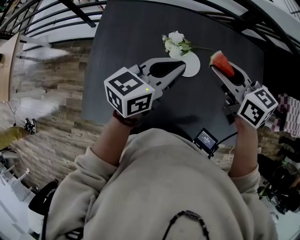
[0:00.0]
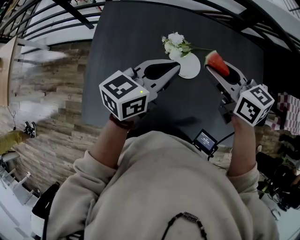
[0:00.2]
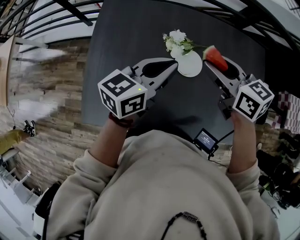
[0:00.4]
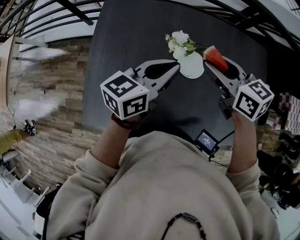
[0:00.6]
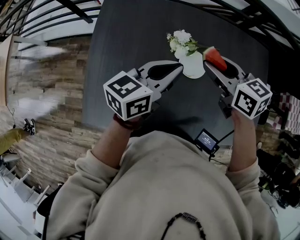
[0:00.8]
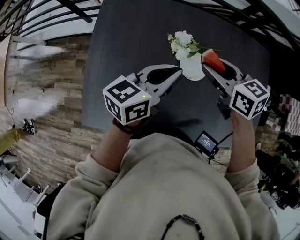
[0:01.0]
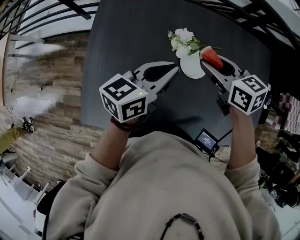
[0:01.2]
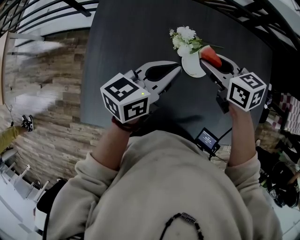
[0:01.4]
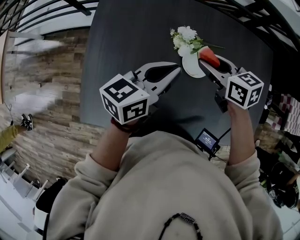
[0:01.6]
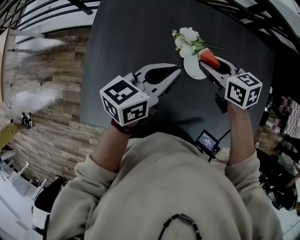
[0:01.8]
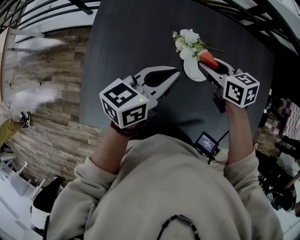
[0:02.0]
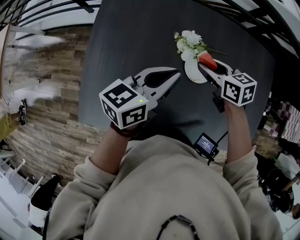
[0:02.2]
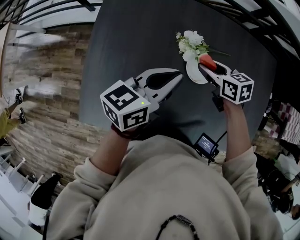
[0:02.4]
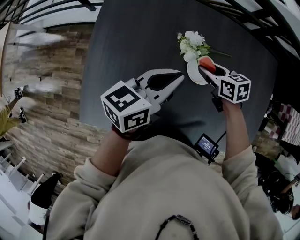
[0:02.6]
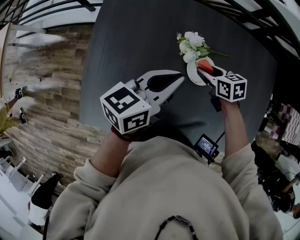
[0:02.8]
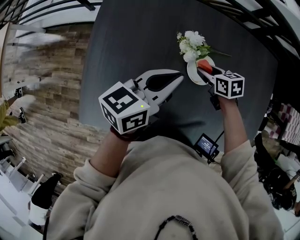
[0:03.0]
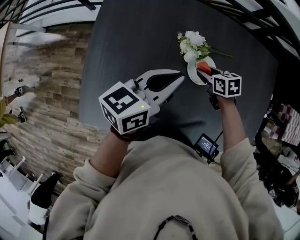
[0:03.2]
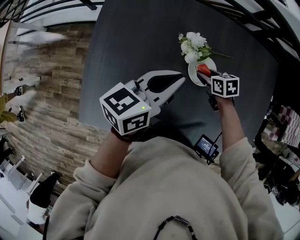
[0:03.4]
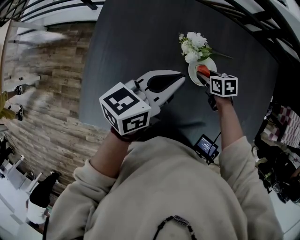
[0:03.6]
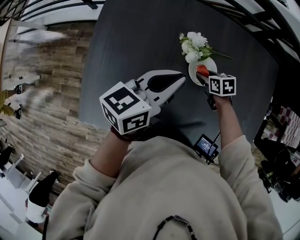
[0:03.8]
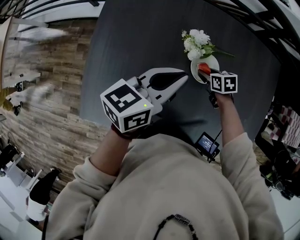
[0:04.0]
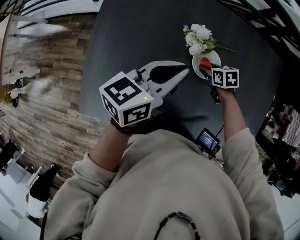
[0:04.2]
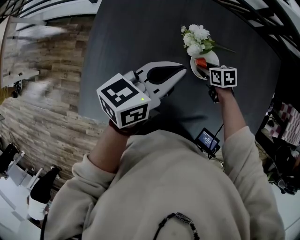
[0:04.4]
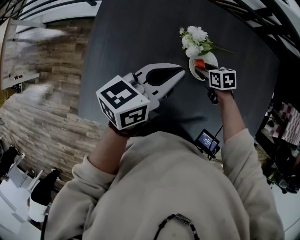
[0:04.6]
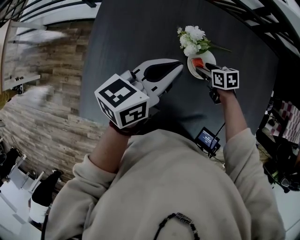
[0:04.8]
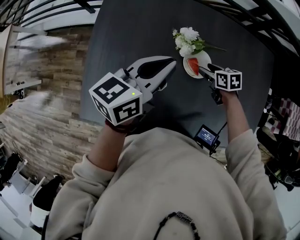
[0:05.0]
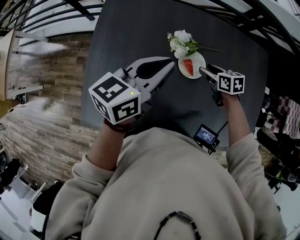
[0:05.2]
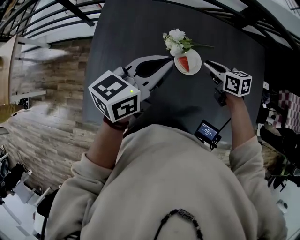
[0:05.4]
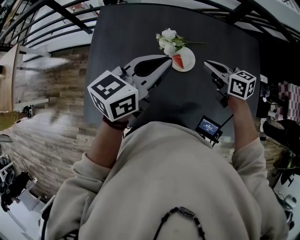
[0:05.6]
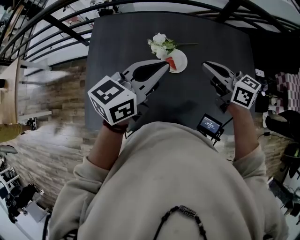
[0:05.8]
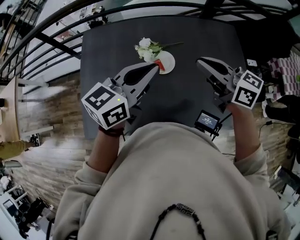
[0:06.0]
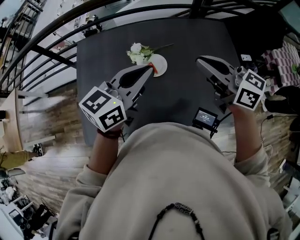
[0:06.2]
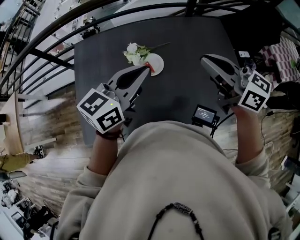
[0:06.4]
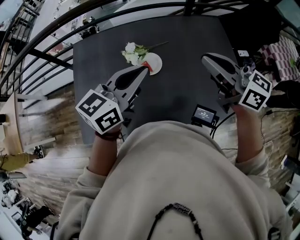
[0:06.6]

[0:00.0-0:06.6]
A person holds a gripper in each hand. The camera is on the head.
0:00.0 to 0:01.6: The right gripper shifts roughly 15 cm downward and to the left; the left gripper moves downward and to the left, about 10 cm.
0:01.6 to 0:03.2: The right gripper moves downward, about 15 cm.
0:03.2 to 0:05.0: The grippers stay close to where they were, moving slightly.
0:05.0 to 0:06.6: The right gripper is displaced upward and backward by some 50 cm, tips its fingers upward by approximately 50 degrees, and closes its fingers. Meanwhile the left gripper goes about 25 cm upward, to the right and backward, and changes its angle by about 20 degrees.

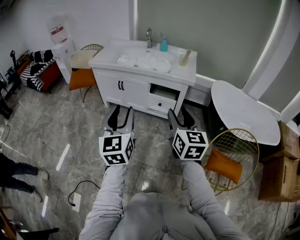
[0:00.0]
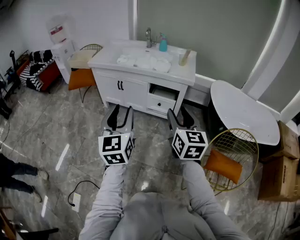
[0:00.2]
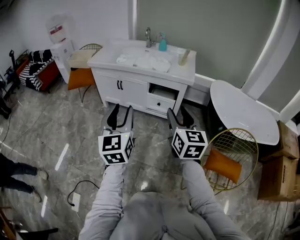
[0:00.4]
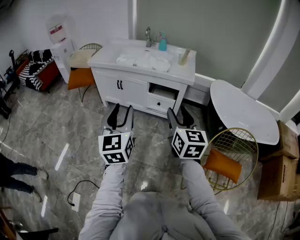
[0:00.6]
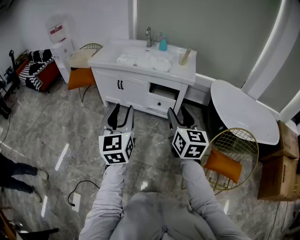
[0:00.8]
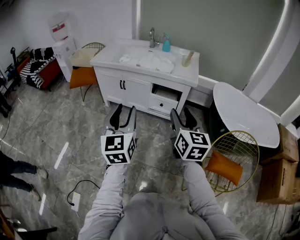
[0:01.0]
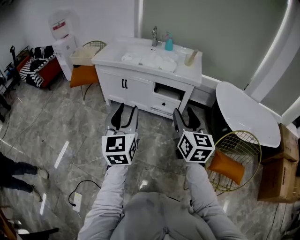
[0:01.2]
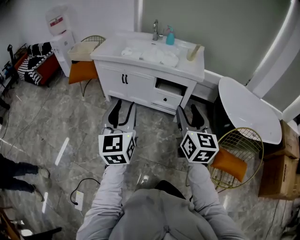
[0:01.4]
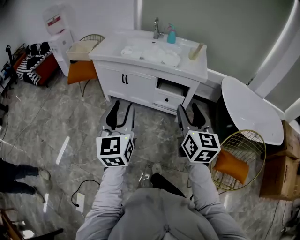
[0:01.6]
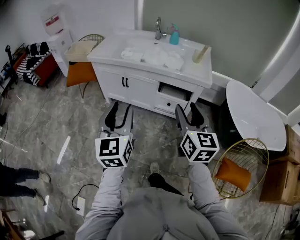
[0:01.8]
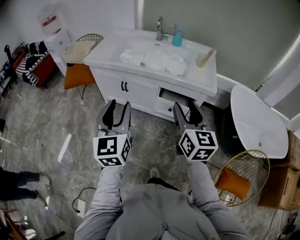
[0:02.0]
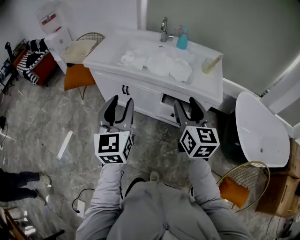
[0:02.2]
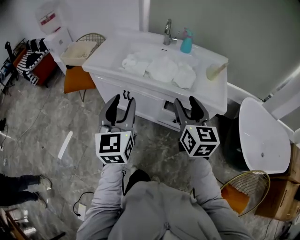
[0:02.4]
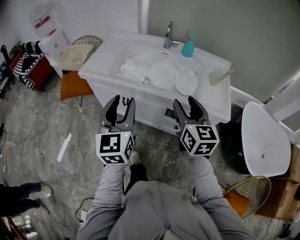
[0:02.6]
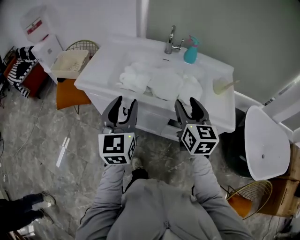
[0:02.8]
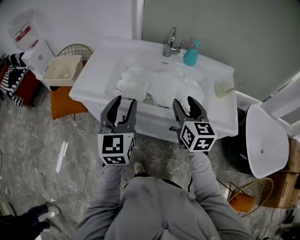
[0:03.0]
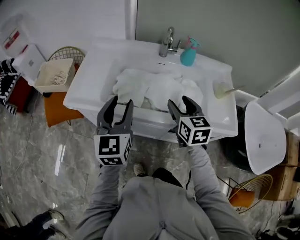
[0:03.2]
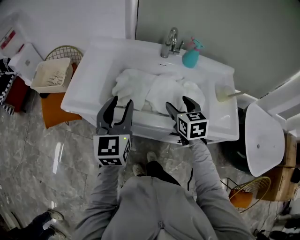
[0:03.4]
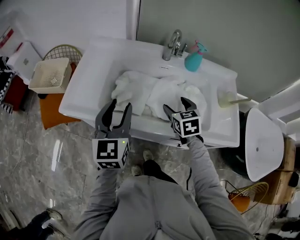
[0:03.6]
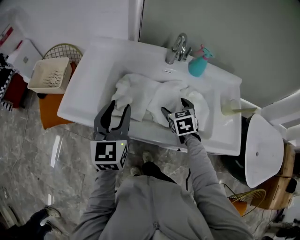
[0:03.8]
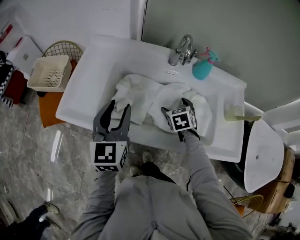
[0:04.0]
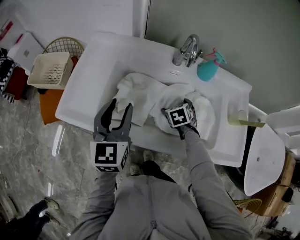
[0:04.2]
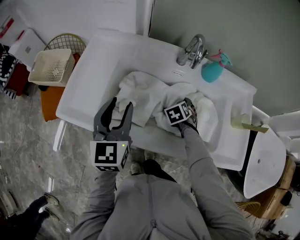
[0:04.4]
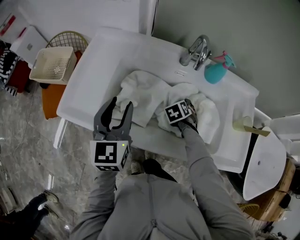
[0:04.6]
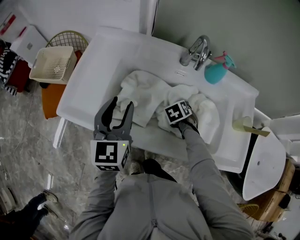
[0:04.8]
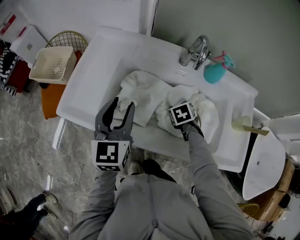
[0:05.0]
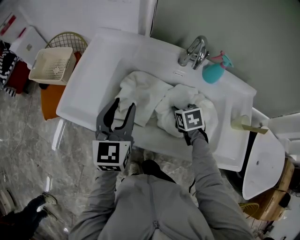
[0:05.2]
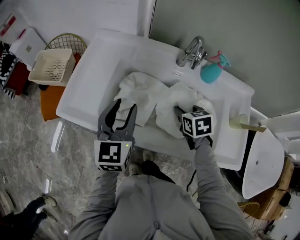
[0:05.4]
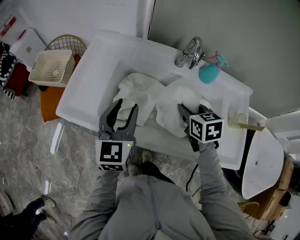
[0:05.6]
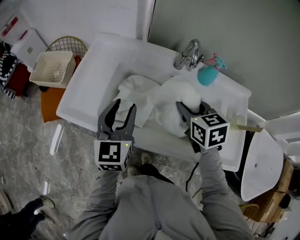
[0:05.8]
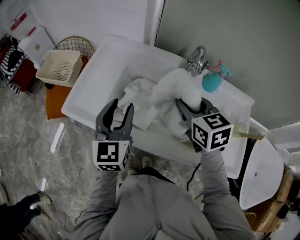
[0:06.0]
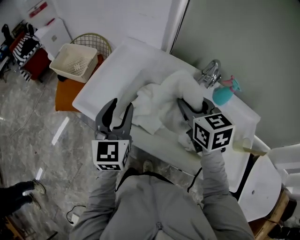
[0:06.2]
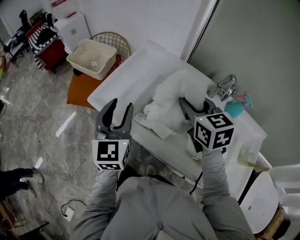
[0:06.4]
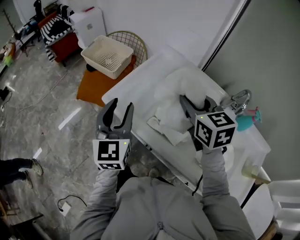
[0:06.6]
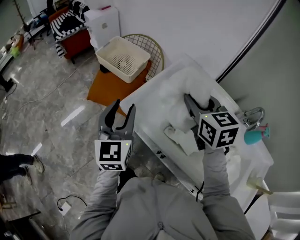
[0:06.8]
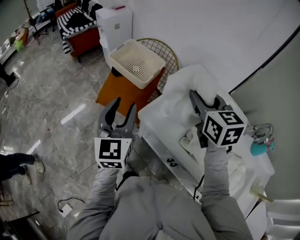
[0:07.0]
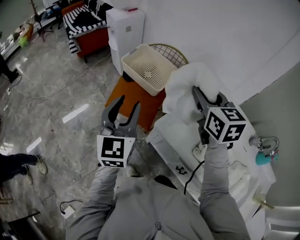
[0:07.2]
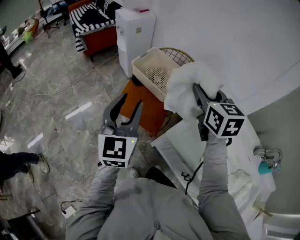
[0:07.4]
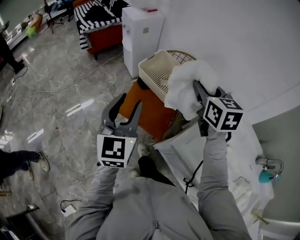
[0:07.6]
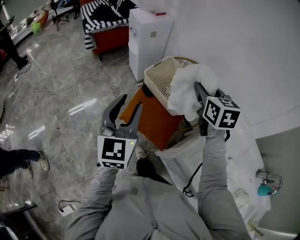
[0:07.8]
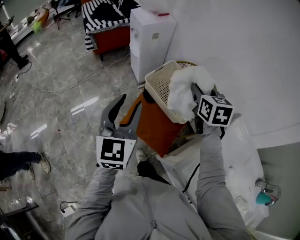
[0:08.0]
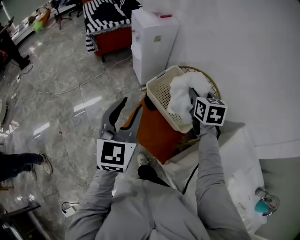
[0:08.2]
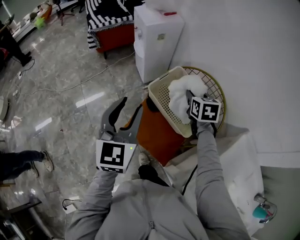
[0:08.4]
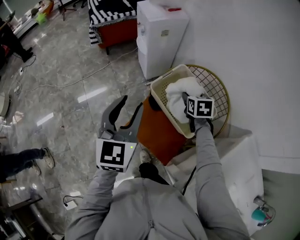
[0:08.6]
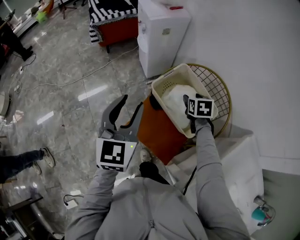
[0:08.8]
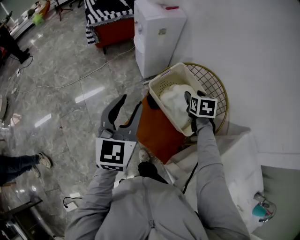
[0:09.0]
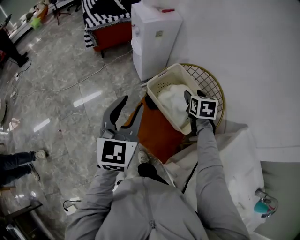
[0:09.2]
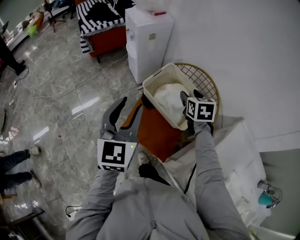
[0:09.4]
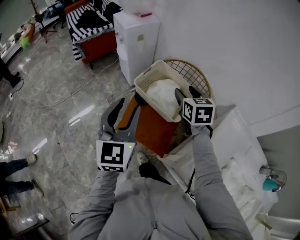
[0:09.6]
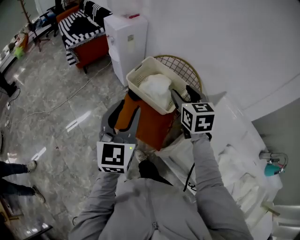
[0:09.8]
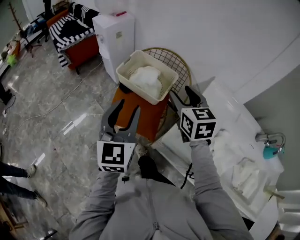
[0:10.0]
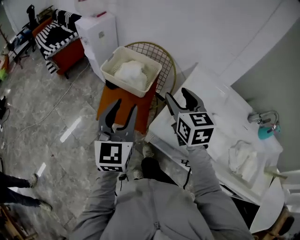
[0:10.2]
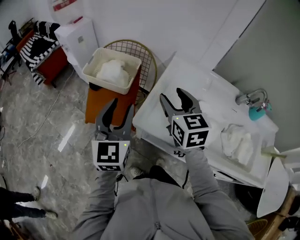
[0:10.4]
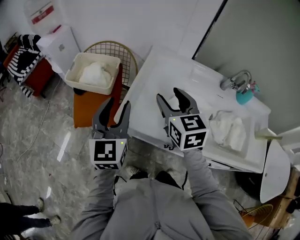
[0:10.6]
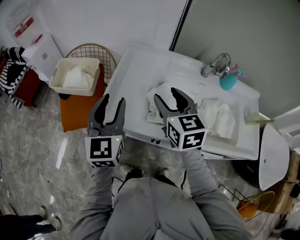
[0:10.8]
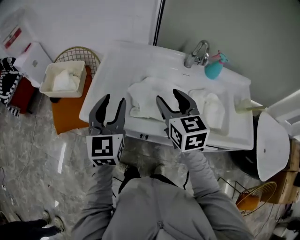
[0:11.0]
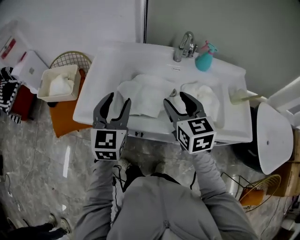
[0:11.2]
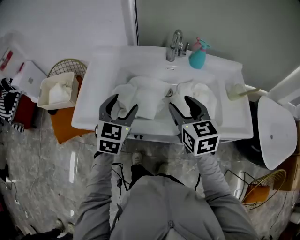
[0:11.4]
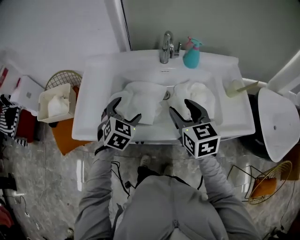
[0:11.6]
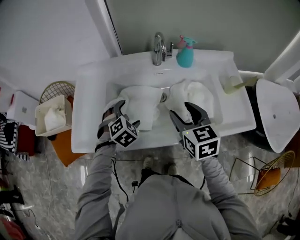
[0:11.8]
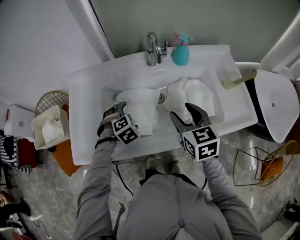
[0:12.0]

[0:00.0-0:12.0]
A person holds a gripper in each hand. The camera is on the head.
0:00.0 to 0:01.6: The right gripper goes about 5 cm forward; the left gripper shifts approximately 10 cm forward and to the left.
0:01.6 to 0:03.0: The two grippers travel together, forward, about 50 cm.
0:03.0 to 0:04.4: The left gripper is displaced forward by approximately 20 cm; the right gripper is displaced downward and forward by approximately 35 cm, points its fingers approximately 50 degrees further downward, and opens up.
0:04.4 to 0:06.0: The right gripper travels upward by some 30 cm, points its fingers roughly 40 degrees further upward, and closes up.
0:06.0 to 0:07.6: The two grippers travel together, approximately 60 cm. The left gripper swivels approximately 30 degrees. The right gripper swivels roughly 20 degrees.
0:07.6 to 0:09.0: The right gripper moves forward and downward, roughly 35 cm, and rotates roughly 30 degrees. Meanwhile the left gripper travels forward by about 20 cm.
0:09.0 to 0:10.4: The right gripper heads backward, upward and to the right, covering some 50 cm, and changes its angle by approximately 30 degrees; the left gripper moves backward and to the right, some 35 cm, and turns by roughly 30 degrees.
0:10.4 to 0:12.0: Both grippers are carried about 40 cm. The right gripper swivels roughly 40 degrees. The left gripper tips its fingers downward by about 60 degrees, and opens up.

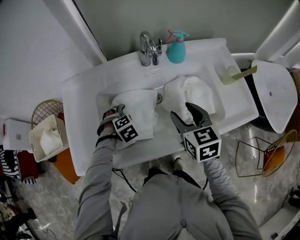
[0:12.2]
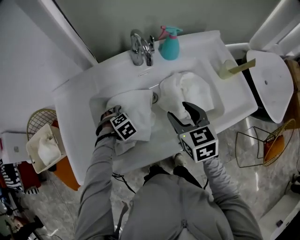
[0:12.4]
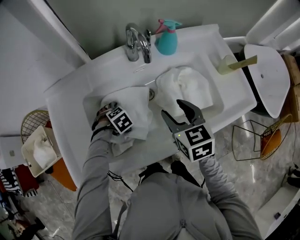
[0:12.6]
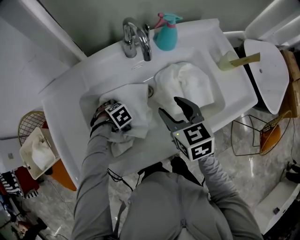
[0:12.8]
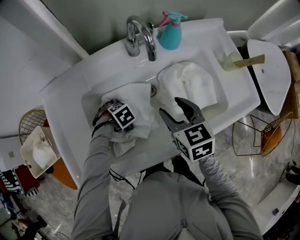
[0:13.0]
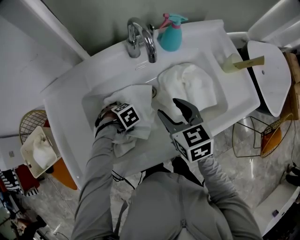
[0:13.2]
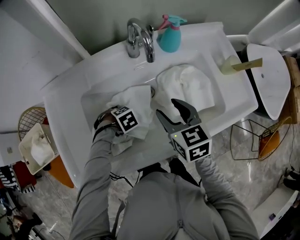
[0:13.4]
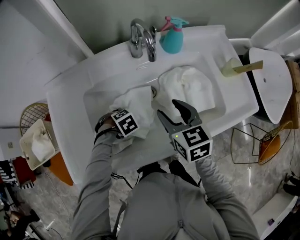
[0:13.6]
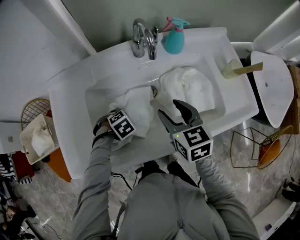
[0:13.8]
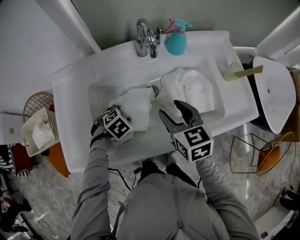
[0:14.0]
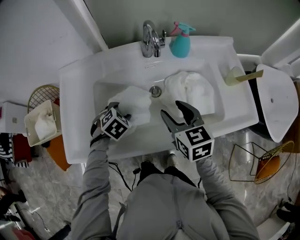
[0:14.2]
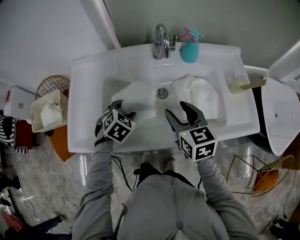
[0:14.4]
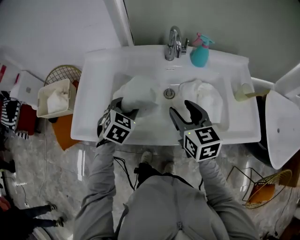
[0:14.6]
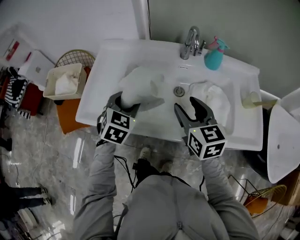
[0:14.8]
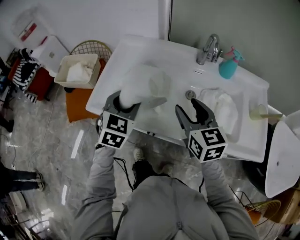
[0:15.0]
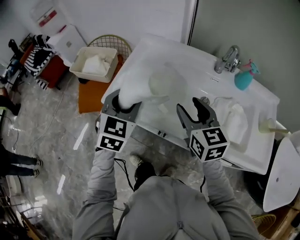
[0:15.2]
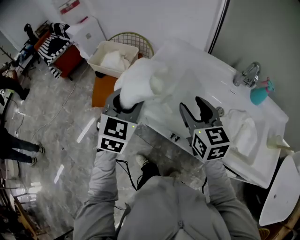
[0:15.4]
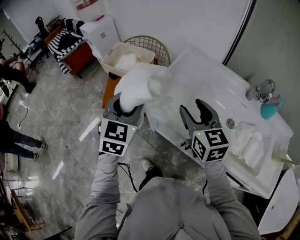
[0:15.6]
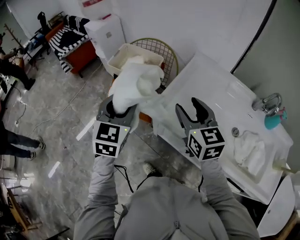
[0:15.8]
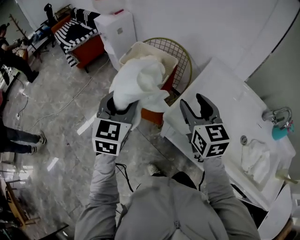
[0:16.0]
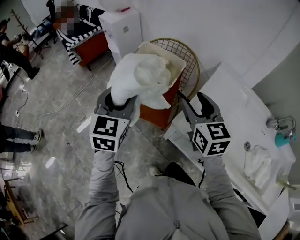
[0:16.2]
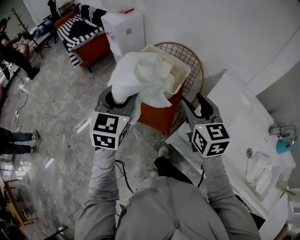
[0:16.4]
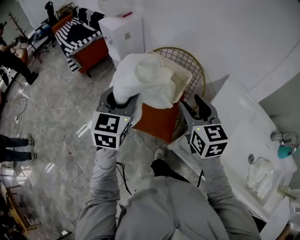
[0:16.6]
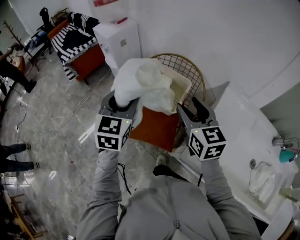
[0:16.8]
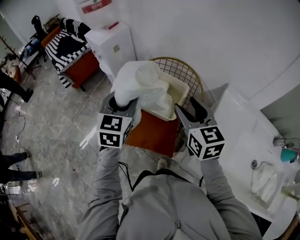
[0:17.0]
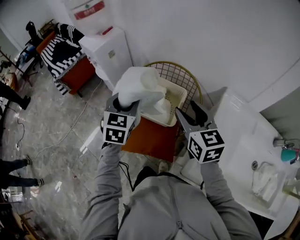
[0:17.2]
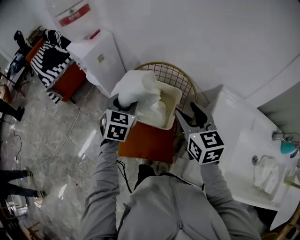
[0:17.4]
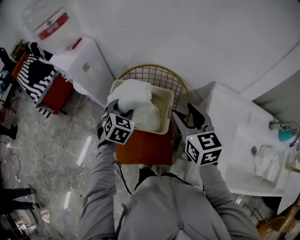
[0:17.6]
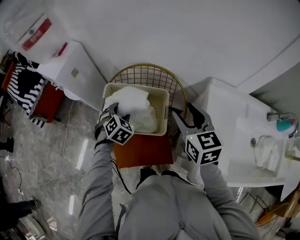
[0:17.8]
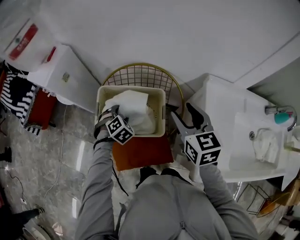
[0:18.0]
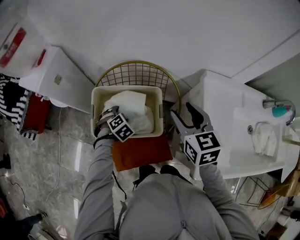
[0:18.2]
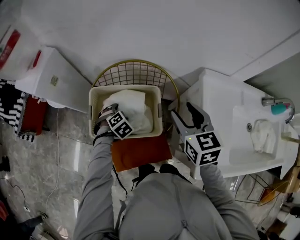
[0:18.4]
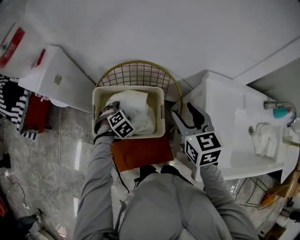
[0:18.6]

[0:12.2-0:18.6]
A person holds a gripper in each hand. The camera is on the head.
0:12.2 to 0:13.8: The left gripper closes up.
0:13.8 to 0:15.4: The right gripper moves about 25 cm, and changes its angle by some 40 degrees, while the left gripper is displaced upward by approximately 30 cm, and angles its fingers upward, by roughly 60 degrees.
0:15.4 to 0:17.0: The pair of grippers is taken forward and to the left, approximately 50 cm.
0:17.0 to 0:18.6: The right gripper moves about 15 cm, and changes its angle by roughly 30 degrees; the left gripper moves downward, roughly 30 cm, and tilts its fingers approximately 50 degrees downward.
